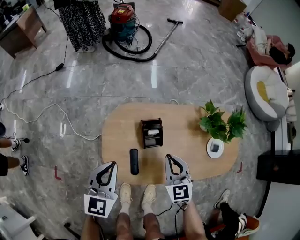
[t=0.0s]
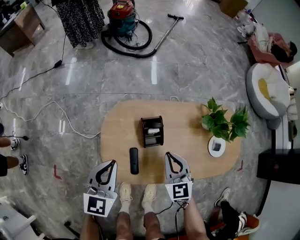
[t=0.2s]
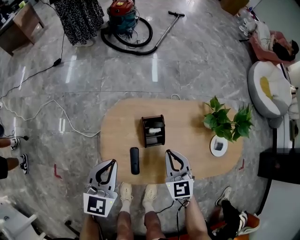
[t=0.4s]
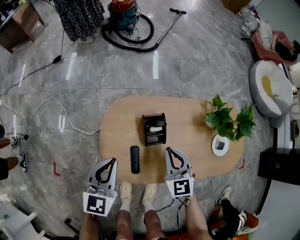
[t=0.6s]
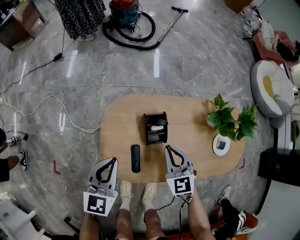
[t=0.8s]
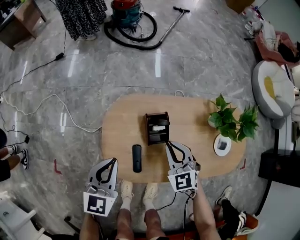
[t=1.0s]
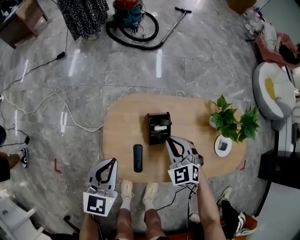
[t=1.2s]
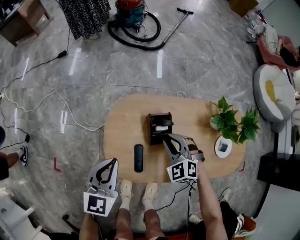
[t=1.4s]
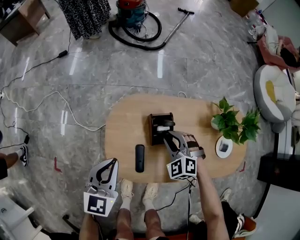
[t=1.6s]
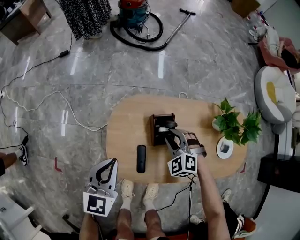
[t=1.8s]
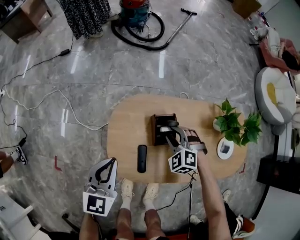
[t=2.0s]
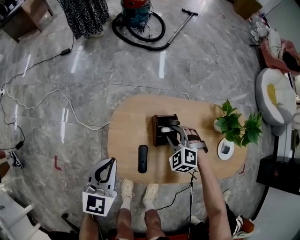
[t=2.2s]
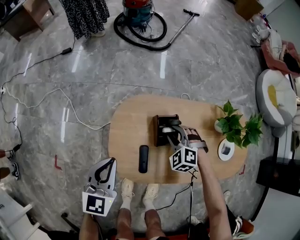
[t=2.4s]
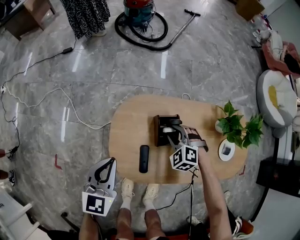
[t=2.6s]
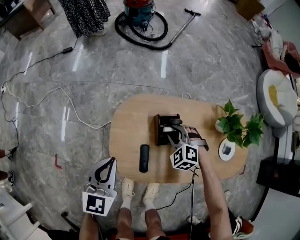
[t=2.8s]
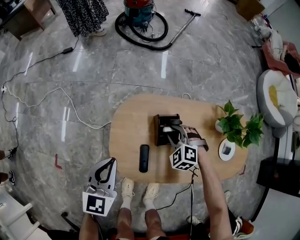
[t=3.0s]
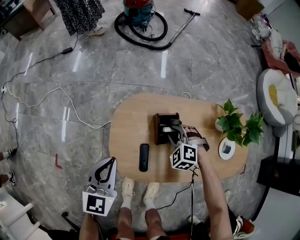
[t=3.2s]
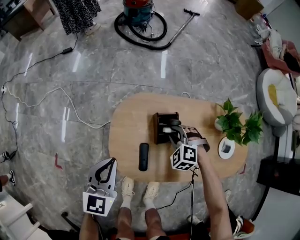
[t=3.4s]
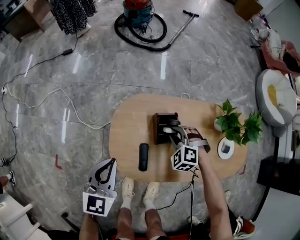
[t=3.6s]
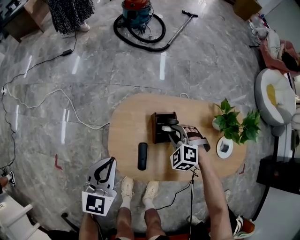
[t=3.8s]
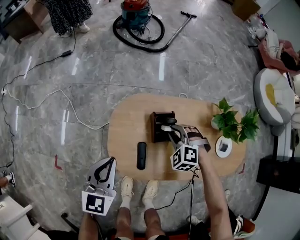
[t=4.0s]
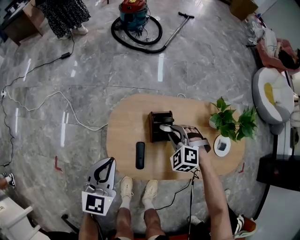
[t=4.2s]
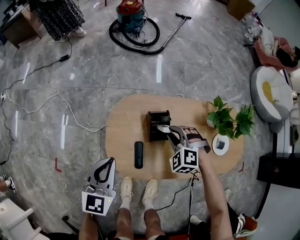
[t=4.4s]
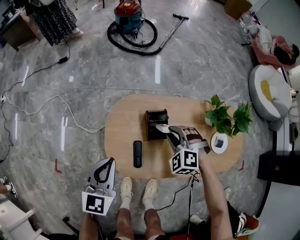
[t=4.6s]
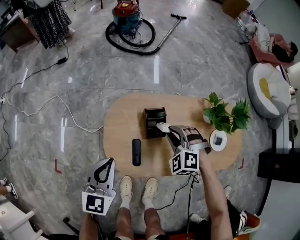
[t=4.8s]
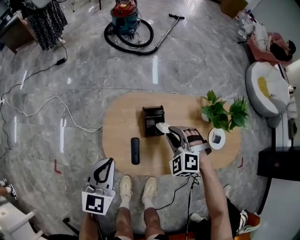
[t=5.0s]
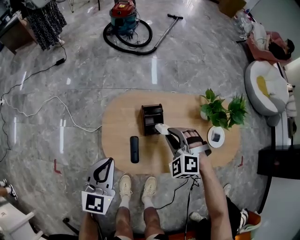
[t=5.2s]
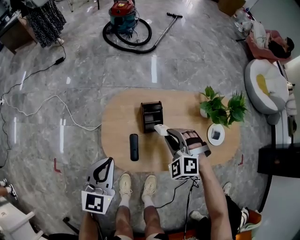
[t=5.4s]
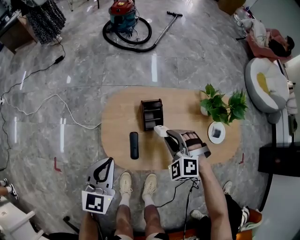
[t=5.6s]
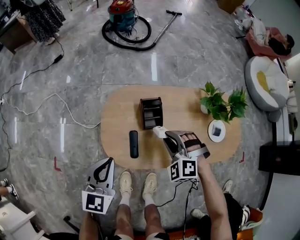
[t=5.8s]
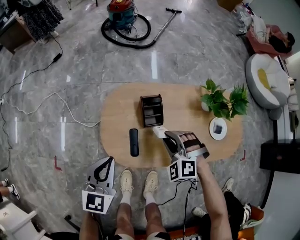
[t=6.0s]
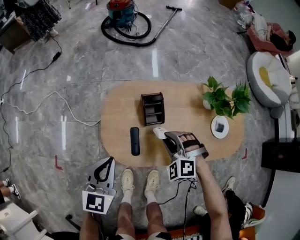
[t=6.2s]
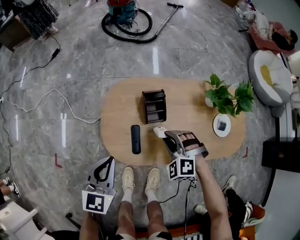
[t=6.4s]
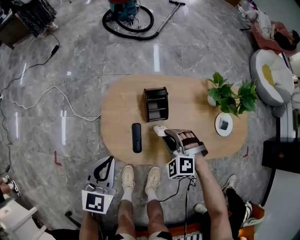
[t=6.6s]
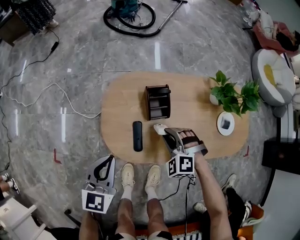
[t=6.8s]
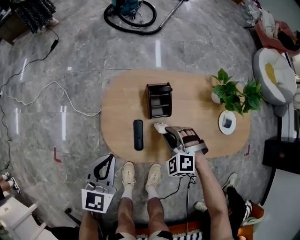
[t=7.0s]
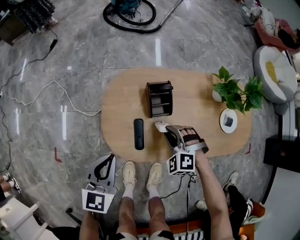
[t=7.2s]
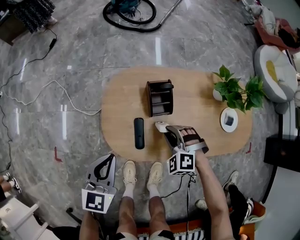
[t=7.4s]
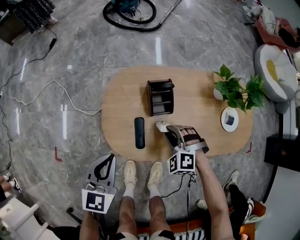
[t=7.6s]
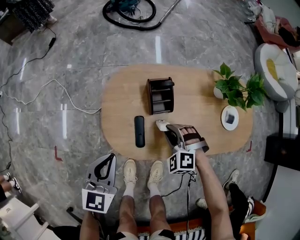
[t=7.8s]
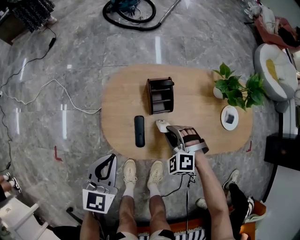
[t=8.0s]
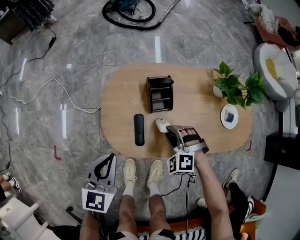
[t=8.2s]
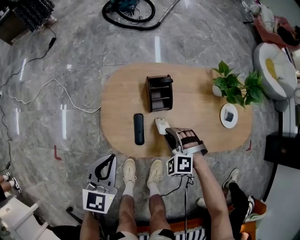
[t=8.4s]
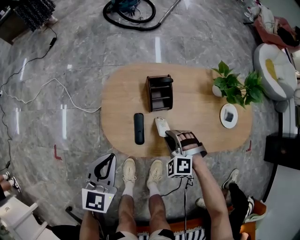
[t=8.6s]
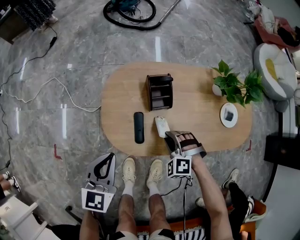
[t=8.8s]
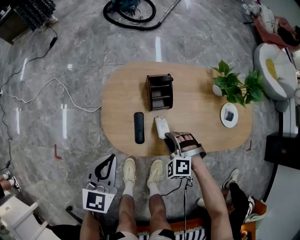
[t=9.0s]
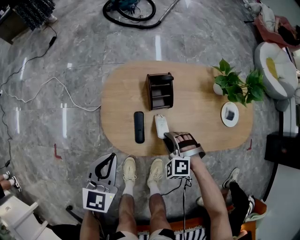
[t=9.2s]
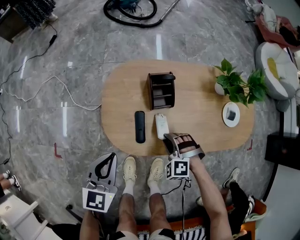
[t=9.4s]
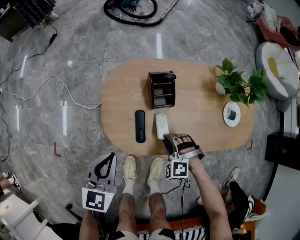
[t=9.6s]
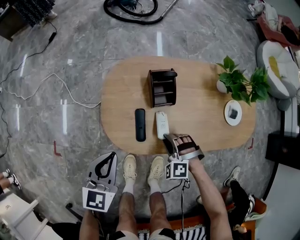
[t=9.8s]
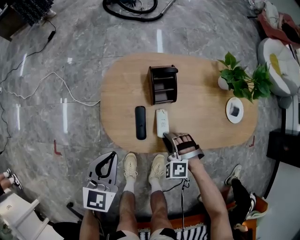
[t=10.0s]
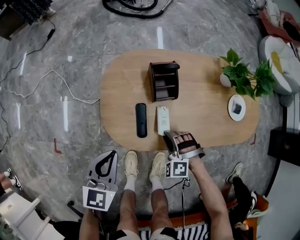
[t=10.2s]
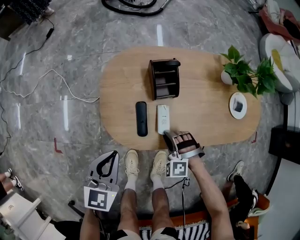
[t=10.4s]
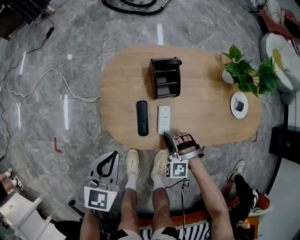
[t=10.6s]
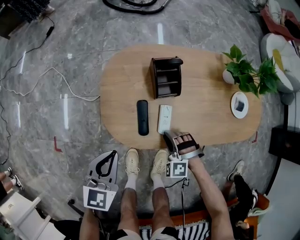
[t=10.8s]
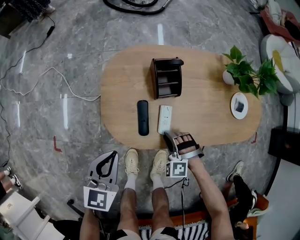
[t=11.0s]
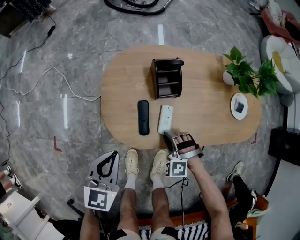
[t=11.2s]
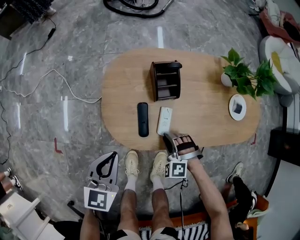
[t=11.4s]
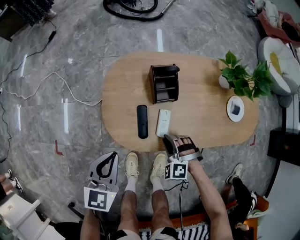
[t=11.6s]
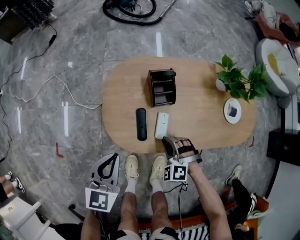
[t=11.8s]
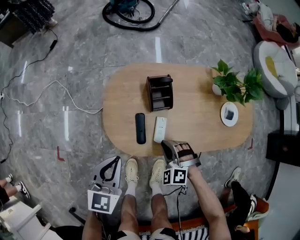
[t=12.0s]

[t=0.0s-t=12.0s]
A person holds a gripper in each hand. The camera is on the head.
t=0.0s to t=1.6s: The right gripper is displaced downward and forward by some 10 cm, and rotates around the line of its fingers by about 40 degrees, counterclockwise from behind, while the left gripper ends up approximately 5 cm from where it was.
t=1.6s to t=3.0s: The grippers move only a little.
t=3.0s to t=4.4s: The right gripper shifts some 5 cm upward.
t=4.4s to t=6.0s: The left gripper is displaced backward by approximately 5 cm; the right gripper travels backward by roughly 10 cm.
t=6.0s to t=7.6s: The right gripper travels downward by roughly 10 cm; the left gripper is displaced downward by some 5 cm.
t=7.6s to t=9.0s: The right gripper heads backward, covering about 5 cm.
t=9.0s to t=10.4s: The right gripper heads downward, covering approximately 5 cm.
t=10.4s to t=12.0s: Both grippers travel together upward, roughly 5 cm.

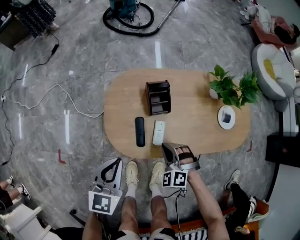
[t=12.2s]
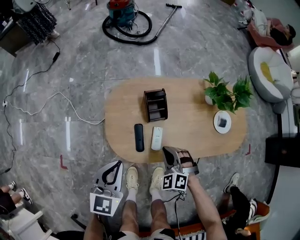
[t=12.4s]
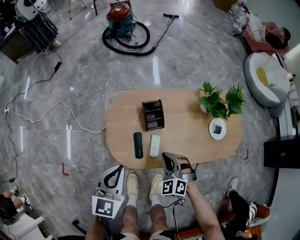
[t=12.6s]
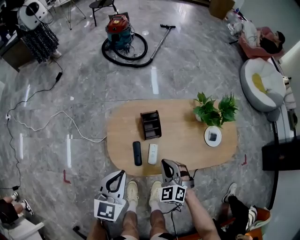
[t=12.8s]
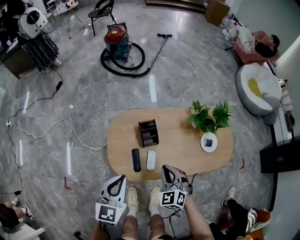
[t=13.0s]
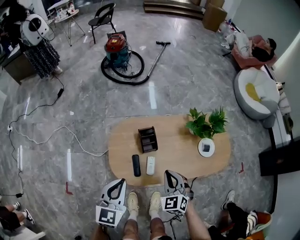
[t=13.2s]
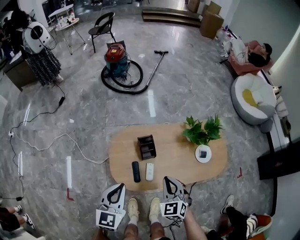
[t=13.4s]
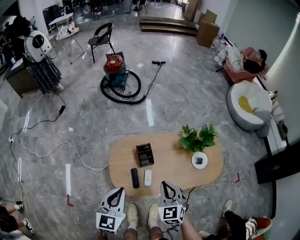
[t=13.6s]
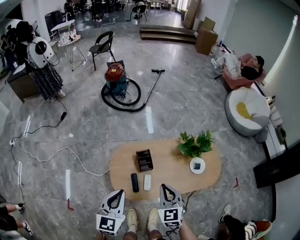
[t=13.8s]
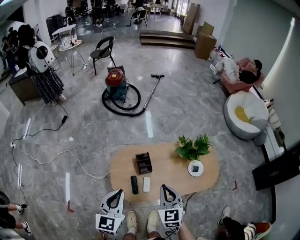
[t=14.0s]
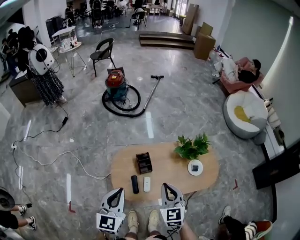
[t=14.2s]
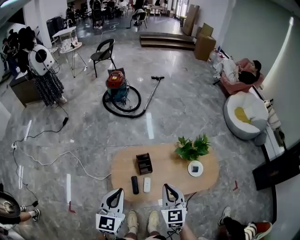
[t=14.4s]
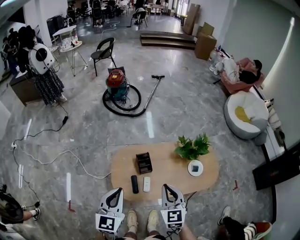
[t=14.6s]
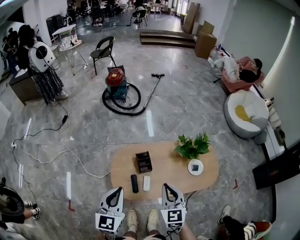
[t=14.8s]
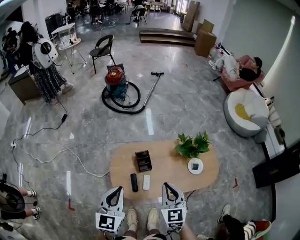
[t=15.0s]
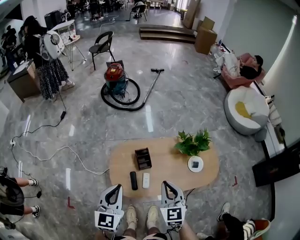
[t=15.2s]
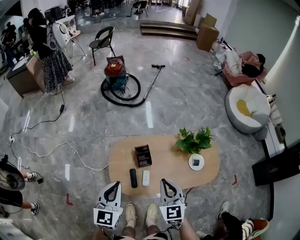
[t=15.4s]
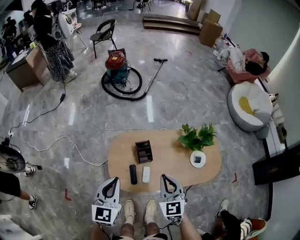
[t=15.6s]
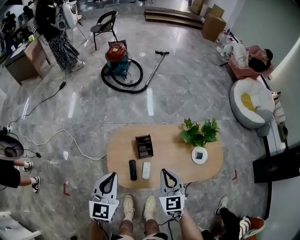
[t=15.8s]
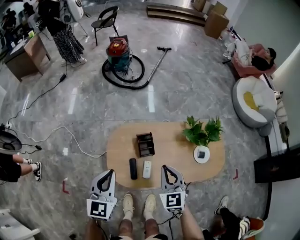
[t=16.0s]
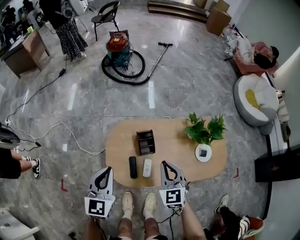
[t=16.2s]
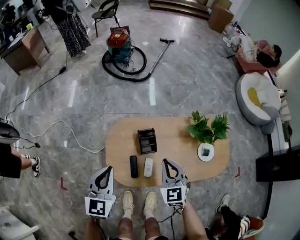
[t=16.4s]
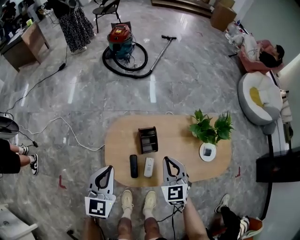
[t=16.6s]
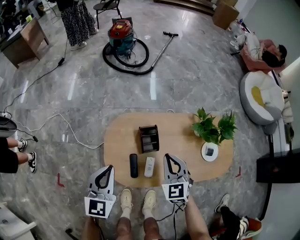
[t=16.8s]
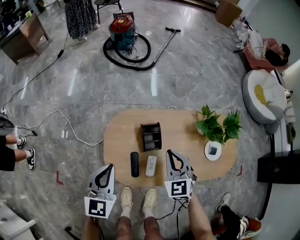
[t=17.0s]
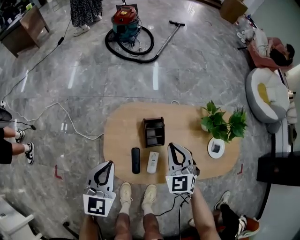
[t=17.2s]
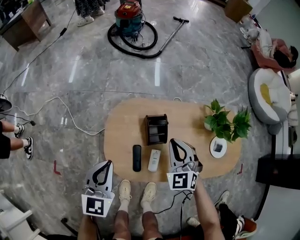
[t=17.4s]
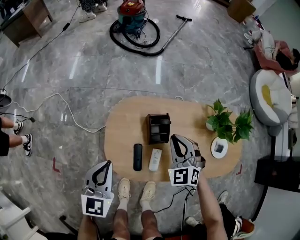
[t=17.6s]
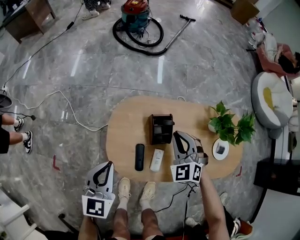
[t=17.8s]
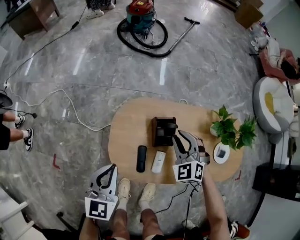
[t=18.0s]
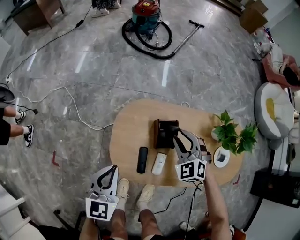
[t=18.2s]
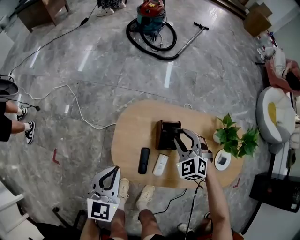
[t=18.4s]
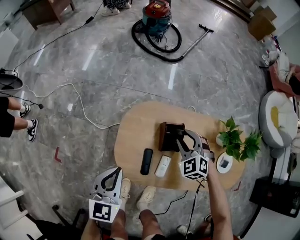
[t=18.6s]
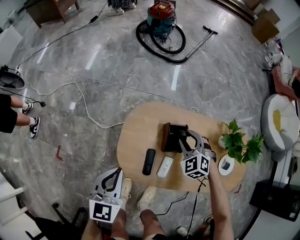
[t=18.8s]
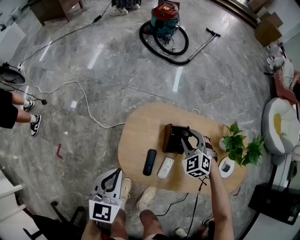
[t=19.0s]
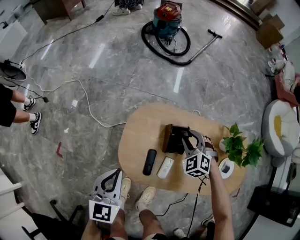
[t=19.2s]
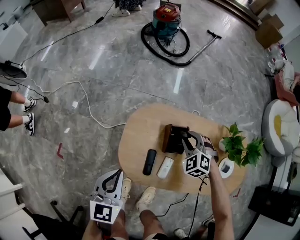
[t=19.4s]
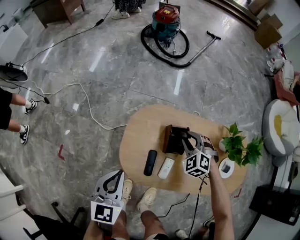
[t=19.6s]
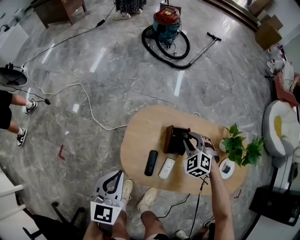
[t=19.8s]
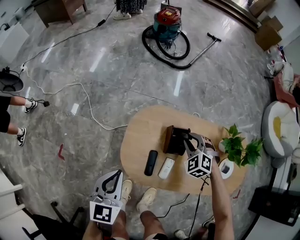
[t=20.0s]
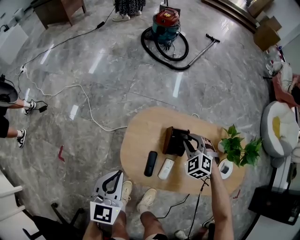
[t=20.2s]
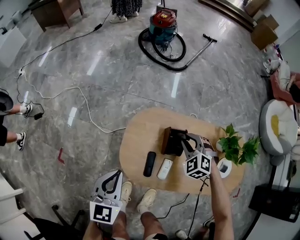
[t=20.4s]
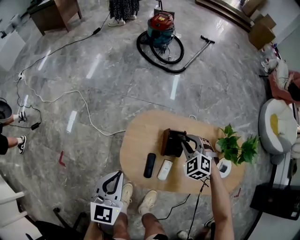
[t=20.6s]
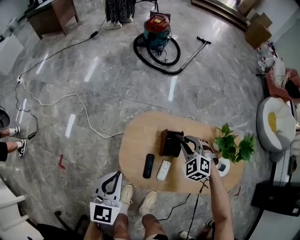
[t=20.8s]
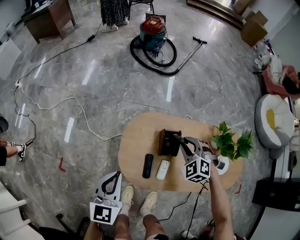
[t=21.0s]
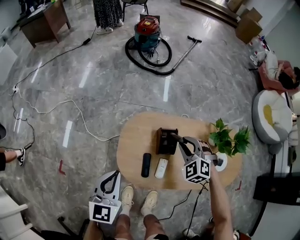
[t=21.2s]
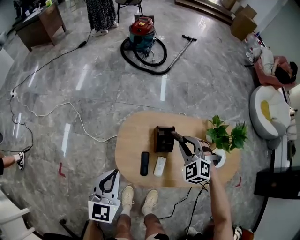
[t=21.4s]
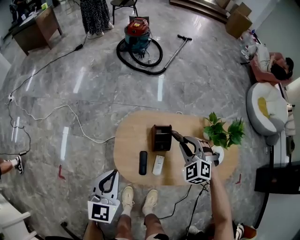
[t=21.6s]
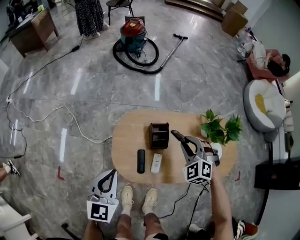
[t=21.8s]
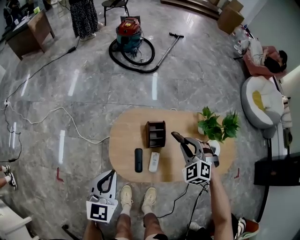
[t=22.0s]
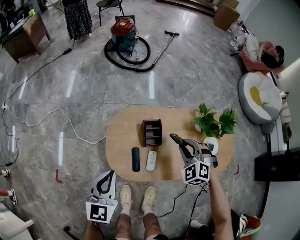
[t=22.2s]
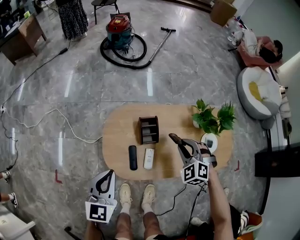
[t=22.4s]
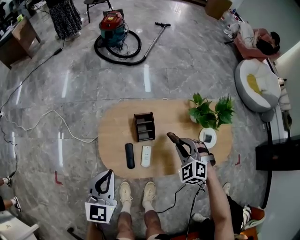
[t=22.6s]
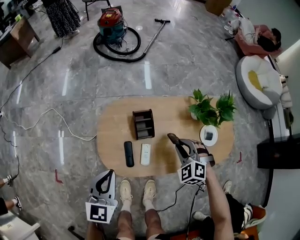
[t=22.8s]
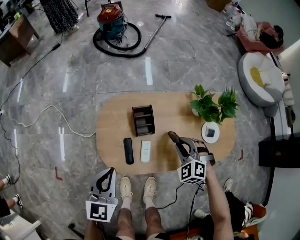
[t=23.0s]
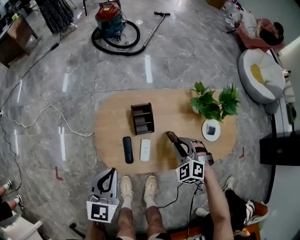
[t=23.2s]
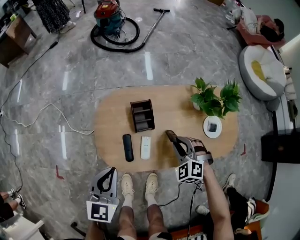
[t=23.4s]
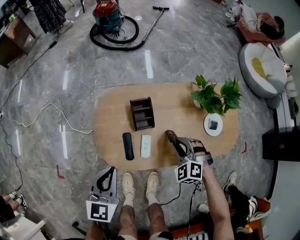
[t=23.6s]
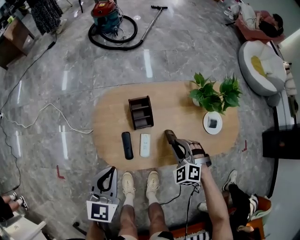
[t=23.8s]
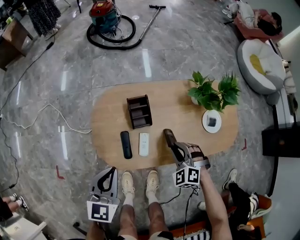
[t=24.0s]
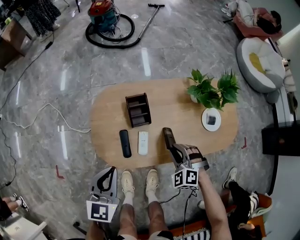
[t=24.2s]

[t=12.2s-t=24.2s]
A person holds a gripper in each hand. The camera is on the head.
t=12.2s to t=13.8s: The two grippers go about 30 cm upward. The right gripper rotates around the line of its fingers by roughly 50 degrees, clockwise from behind.
t=13.8s to t=15.2s: The grippers make only small movements.
t=15.2s to t=16.6s: Both grippers move downward and forward, some 20 cm.
t=16.6s to t=18.2s: The left gripper travels downward by roughly 10 cm. The right gripper travels forward and downward by approximately 15 cm, swivels roughly 40 degrees, and opens.
t=18.2s to t=19.8s: The grippers stay close to where they were, moving slightly.
t=19.8s to t=21.2s: The right gripper travels upward by about 10 cm.
t=21.2s to t=22.6s: The right gripper goes about 15 cm to the right and backward. The left gripper shifts approximately 5 cm to the right.
t=22.6s to t=24.2s: The right gripper heads downward and backward, covering roughly 15 cm. The left gripper goes roughly 5 cm downward.
